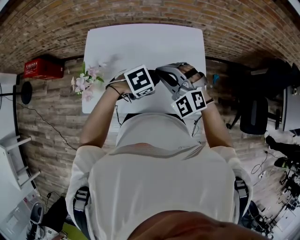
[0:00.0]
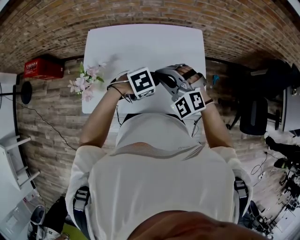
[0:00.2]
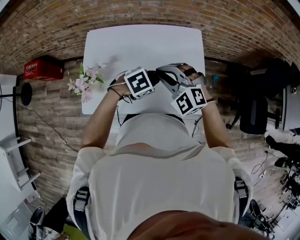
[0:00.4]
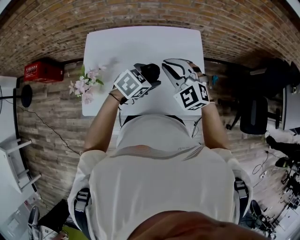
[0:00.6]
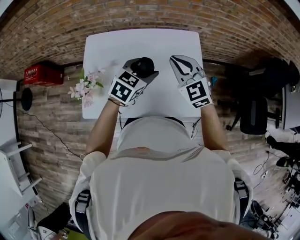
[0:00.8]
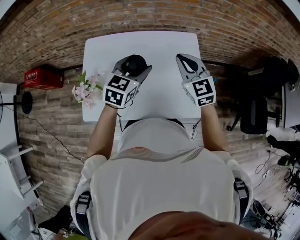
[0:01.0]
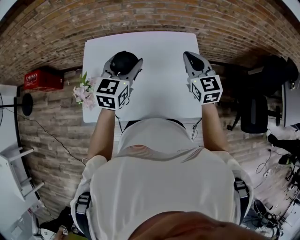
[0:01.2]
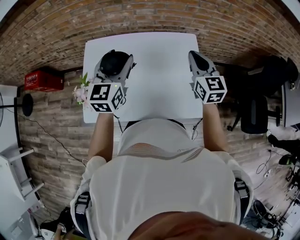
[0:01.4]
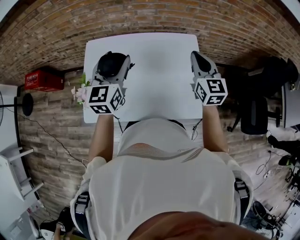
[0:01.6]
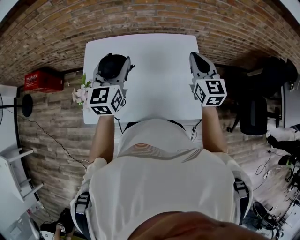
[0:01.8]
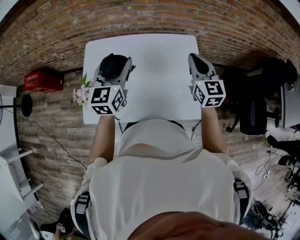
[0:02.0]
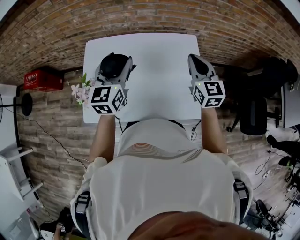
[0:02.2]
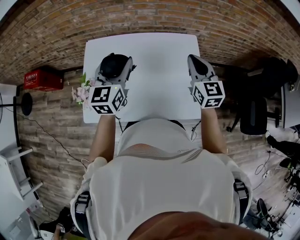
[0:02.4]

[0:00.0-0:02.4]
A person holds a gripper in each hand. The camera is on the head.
0:00.0 to 0:01.2: The left gripper travels upward by some 15 cm, and tips its fingers upward by about 50 degrees. Meanwhile the right gripper moves about 15 cm, and rotates around the line of its fingers by roughly 50 degrees, clockwise from behind.
0:01.2 to 0:02.4: The left gripper changes place by about 5 cm.

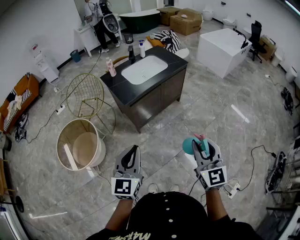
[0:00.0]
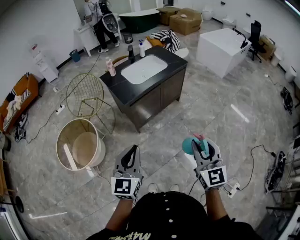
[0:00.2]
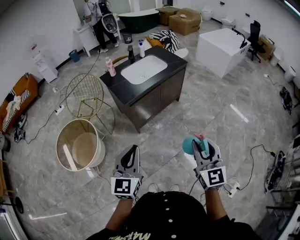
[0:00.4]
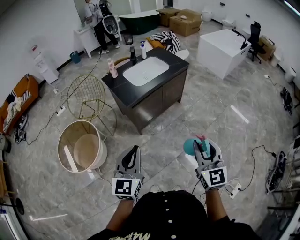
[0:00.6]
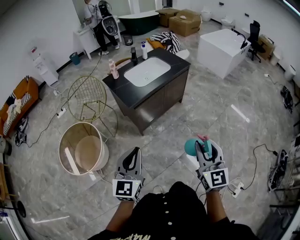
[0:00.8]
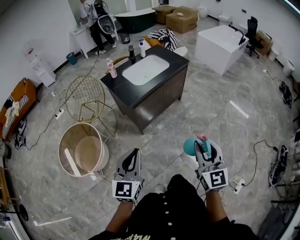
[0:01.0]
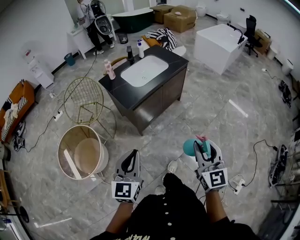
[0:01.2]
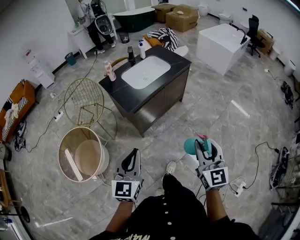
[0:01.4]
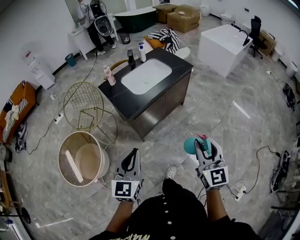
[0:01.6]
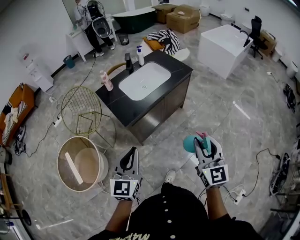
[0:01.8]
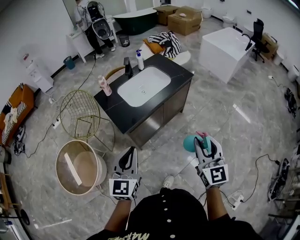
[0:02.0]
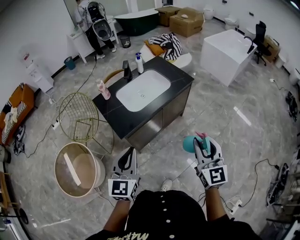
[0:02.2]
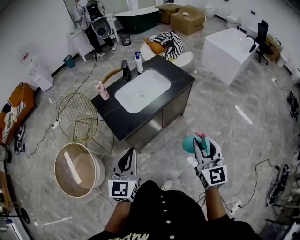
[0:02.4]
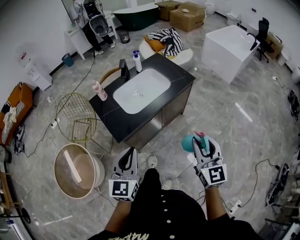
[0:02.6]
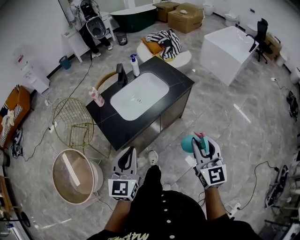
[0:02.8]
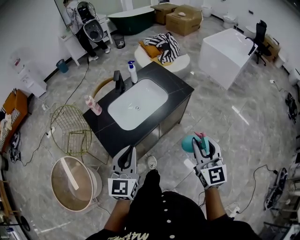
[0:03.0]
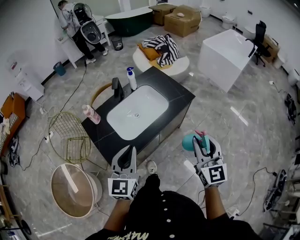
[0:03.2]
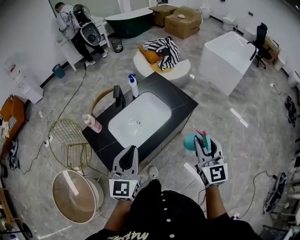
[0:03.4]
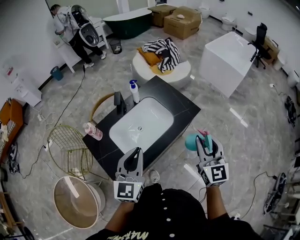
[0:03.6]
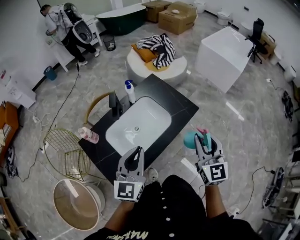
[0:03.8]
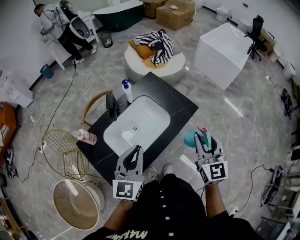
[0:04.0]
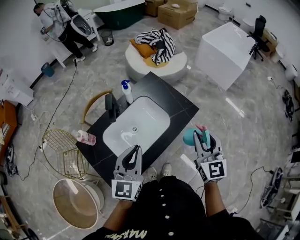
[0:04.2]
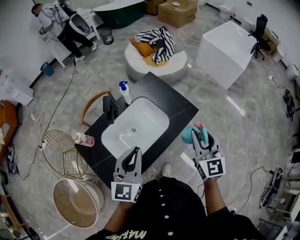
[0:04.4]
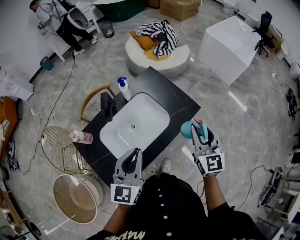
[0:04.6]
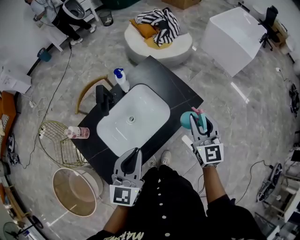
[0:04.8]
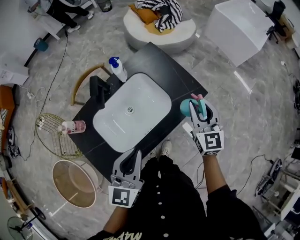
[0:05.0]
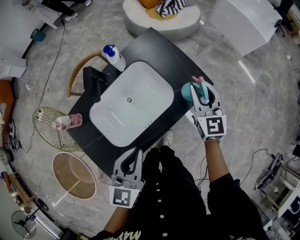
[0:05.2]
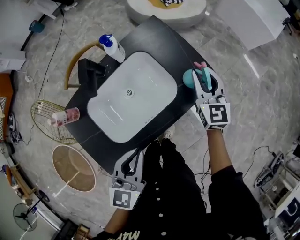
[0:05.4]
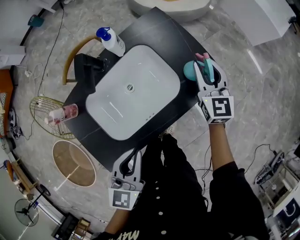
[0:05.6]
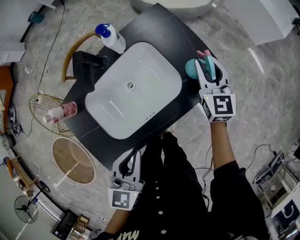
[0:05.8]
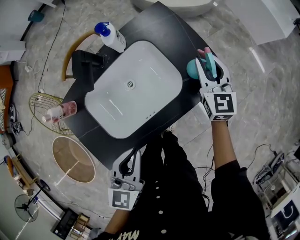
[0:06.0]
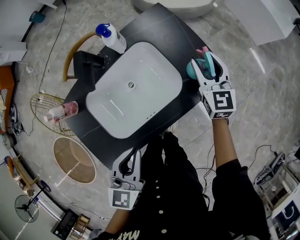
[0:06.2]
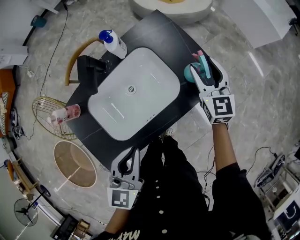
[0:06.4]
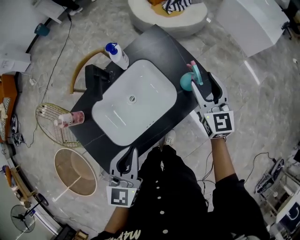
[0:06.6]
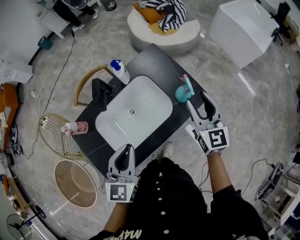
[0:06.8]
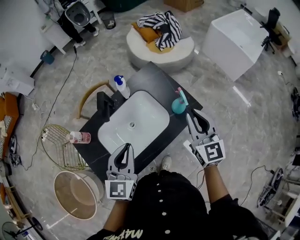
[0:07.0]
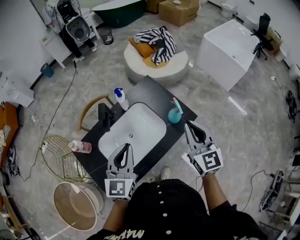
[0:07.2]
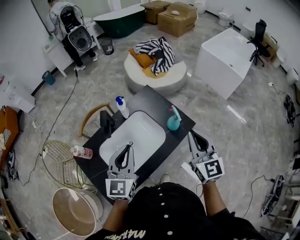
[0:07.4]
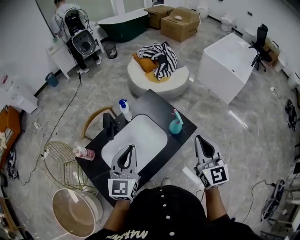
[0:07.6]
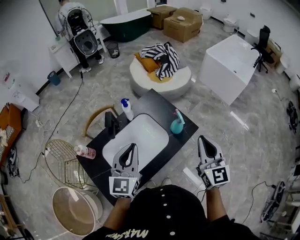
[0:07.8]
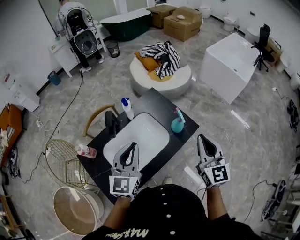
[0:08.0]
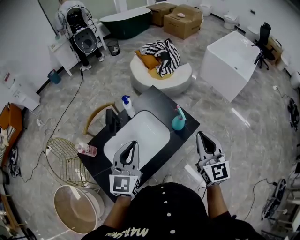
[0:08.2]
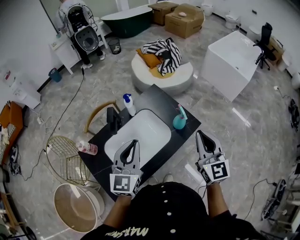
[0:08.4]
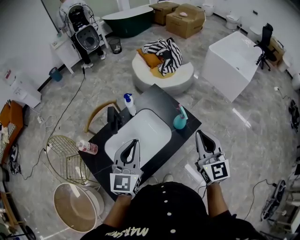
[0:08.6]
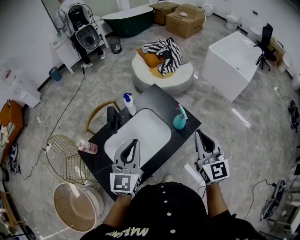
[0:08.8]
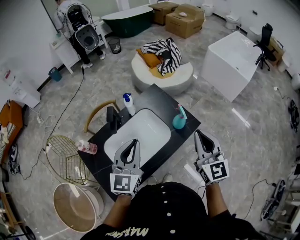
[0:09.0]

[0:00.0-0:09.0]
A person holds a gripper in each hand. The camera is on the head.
0:00.0 to 0:01.6: Both grippers travel together forward, about 15 cm.
0:01.6 to 0:03.0: The two grippers go roughly 30 cm forward.
0:03.0 to 0:04.4: Both grippers travel together forward, approximately 25 cm.
0:04.4 to 0:06.0: The right gripper is displaced forward and downward by roughly 30 cm, while the left gripper shifts some 15 cm downward, and changes its angle by roughly 30 degrees.
0:06.0 to 0:07.6: The left gripper goes roughly 20 cm upward and forward, and rotates some 30 degrees, while the right gripper heads upward and backward, covering some 30 cm, and closes its fingers.
0:07.6 to 0:09.0: There are only small adjustments of the grippers.

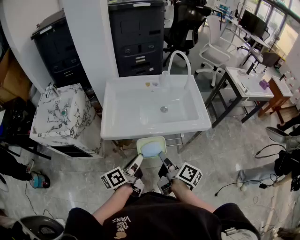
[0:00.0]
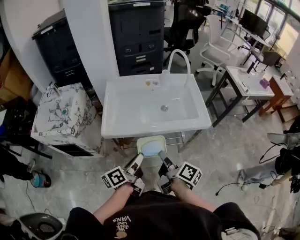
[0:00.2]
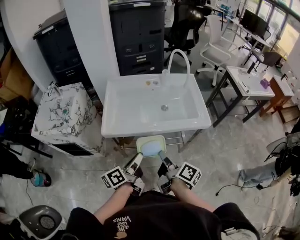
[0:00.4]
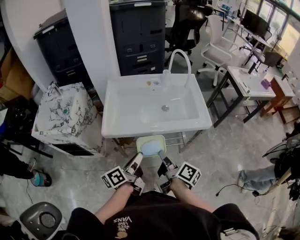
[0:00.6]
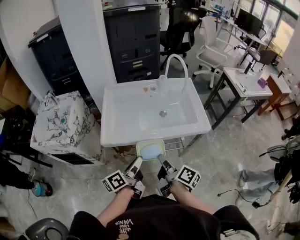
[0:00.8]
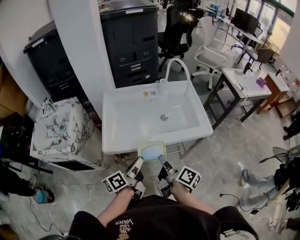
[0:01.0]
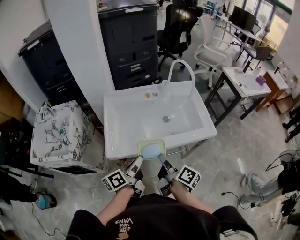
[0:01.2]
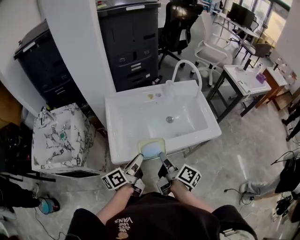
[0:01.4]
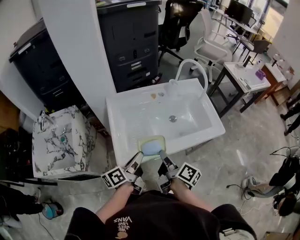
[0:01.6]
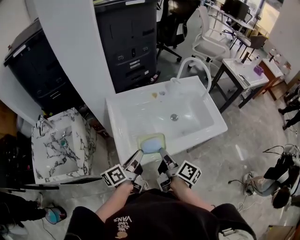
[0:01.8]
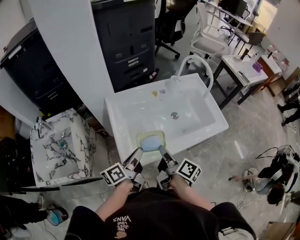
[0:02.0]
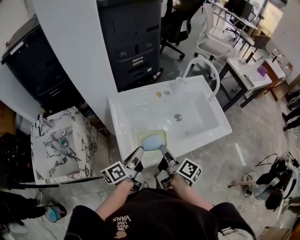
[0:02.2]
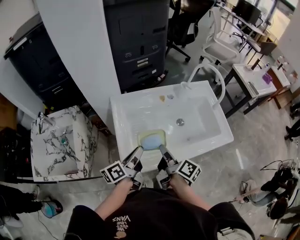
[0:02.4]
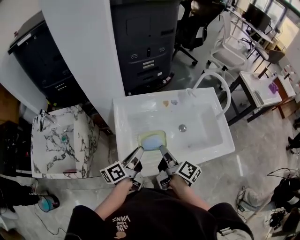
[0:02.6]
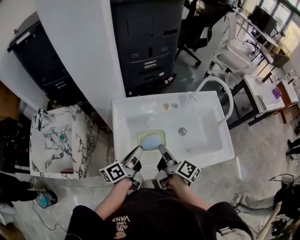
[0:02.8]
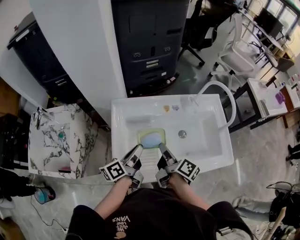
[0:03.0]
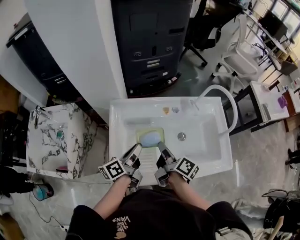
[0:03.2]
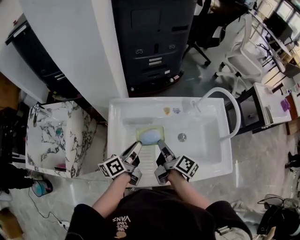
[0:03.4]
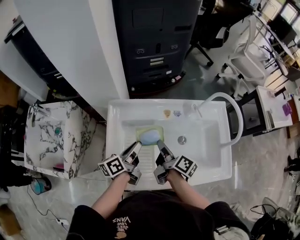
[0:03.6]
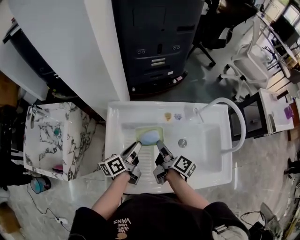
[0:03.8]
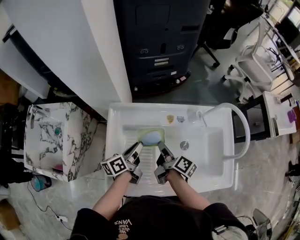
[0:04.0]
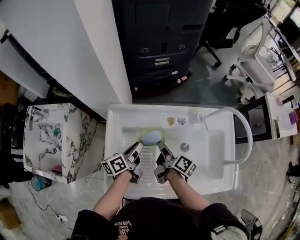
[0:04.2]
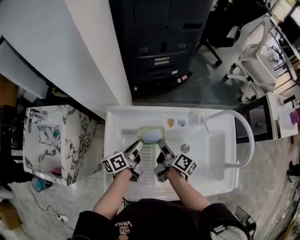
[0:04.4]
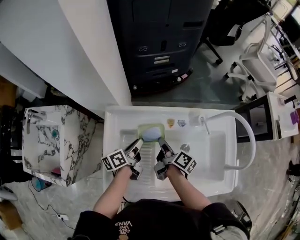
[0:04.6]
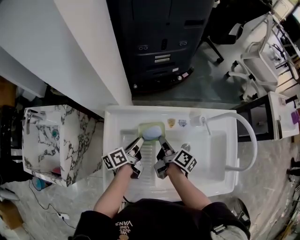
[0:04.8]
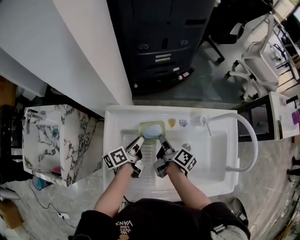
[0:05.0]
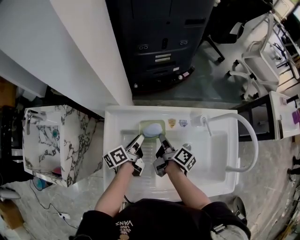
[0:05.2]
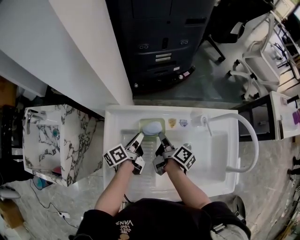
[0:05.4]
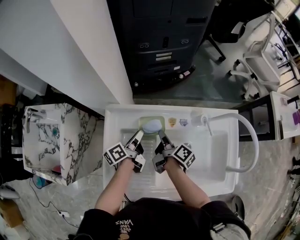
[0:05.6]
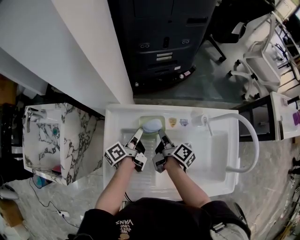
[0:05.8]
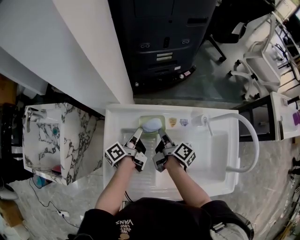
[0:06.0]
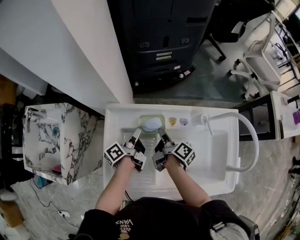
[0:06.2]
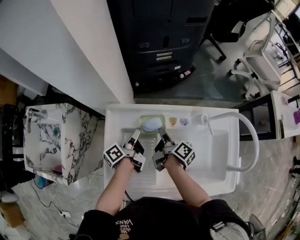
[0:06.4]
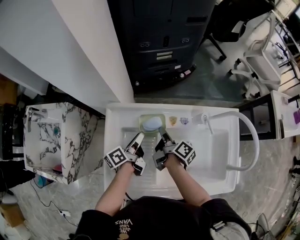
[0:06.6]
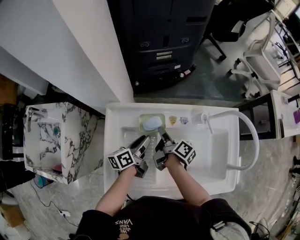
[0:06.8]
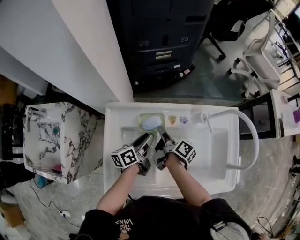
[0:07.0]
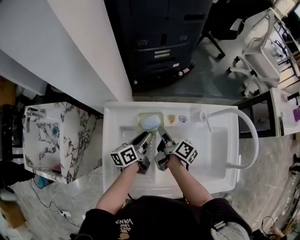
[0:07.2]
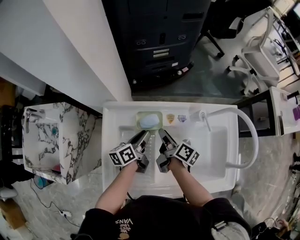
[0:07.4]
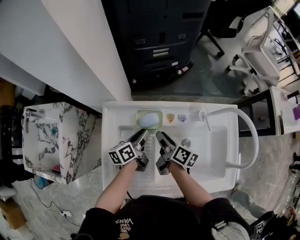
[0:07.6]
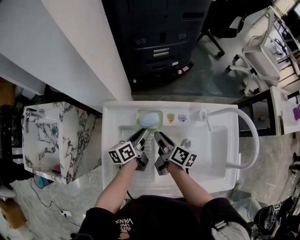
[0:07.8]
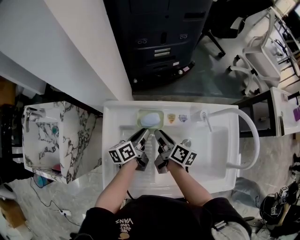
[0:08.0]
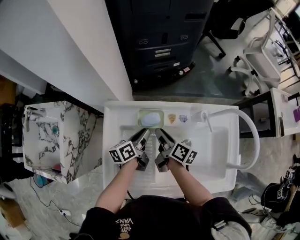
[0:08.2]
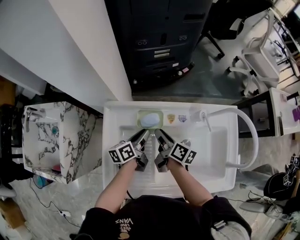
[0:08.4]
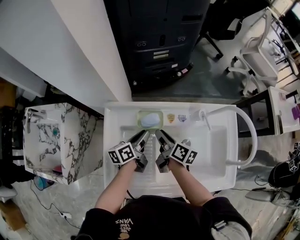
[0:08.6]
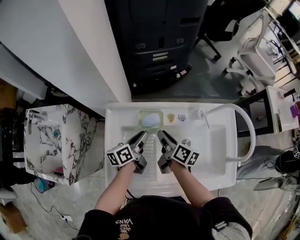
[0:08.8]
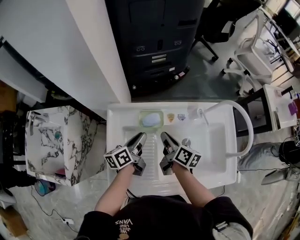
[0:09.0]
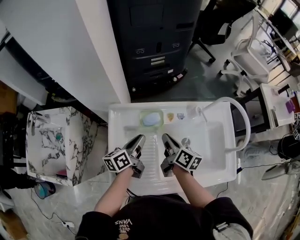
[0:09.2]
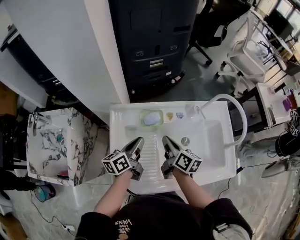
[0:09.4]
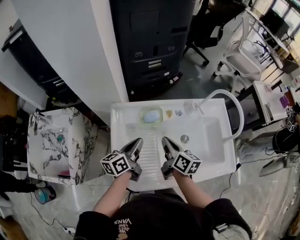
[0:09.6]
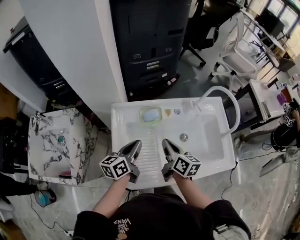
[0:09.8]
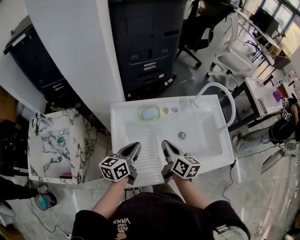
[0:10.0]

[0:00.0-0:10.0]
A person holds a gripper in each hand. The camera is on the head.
0:00.0 to 0:01.4: Both grippers travel together forward and to the left, about 15 cm.
0:01.4 to 0:02.8: Both grippers travel together forward and to the left, about 15 cm.
0:02.8 to 0:04.2: The grippers both shift forward and downward by some 15 cm.
0:04.2 to 0:05.8: Both grippers travel together forward, approximately 5 cm.
0:05.8 to 0:07.2: The left gripper swivels roughly 30 degrees.
0:07.2 to 0:08.6: The grippers stay close to where they were, moving slightly.
0:08.6 to 0:10.0: The grippers both shift backward and upward by some 15 cm. The right gripper changes its angle by some 20 degrees, and closes its fingers. The left gripper changes its angle by roughly 30 degrees, and closes.

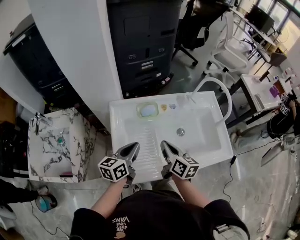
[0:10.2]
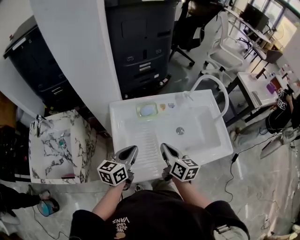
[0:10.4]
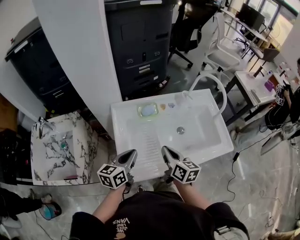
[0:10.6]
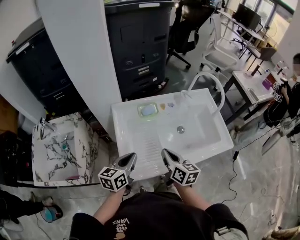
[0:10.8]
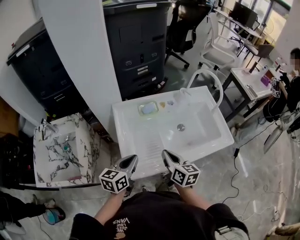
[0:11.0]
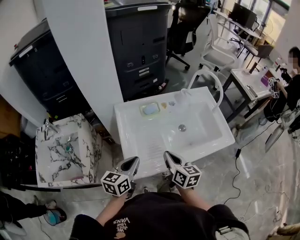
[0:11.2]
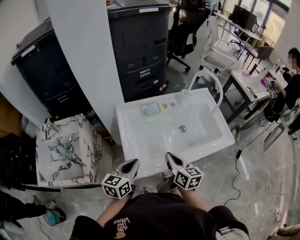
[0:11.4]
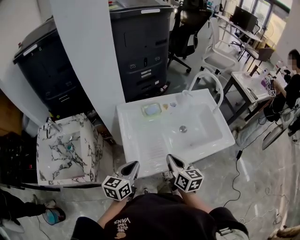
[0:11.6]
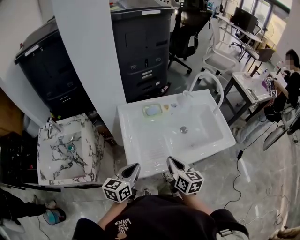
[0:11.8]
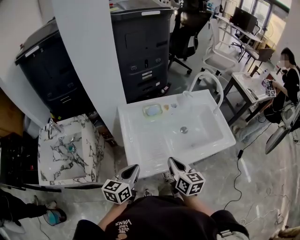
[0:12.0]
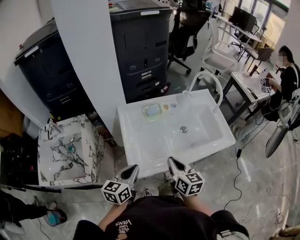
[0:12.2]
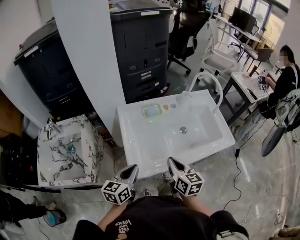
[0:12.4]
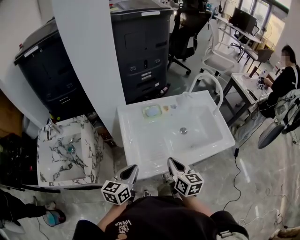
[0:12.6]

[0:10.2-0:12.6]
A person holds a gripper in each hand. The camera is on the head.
0:10.2 to 0:11.4: Both grippers move backward, approximately 10 cm.
0:11.4 to 0:12.6: The grippers make only small movements.
